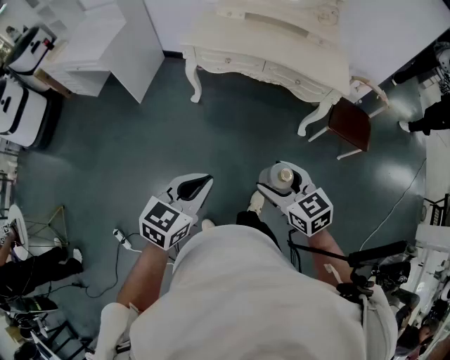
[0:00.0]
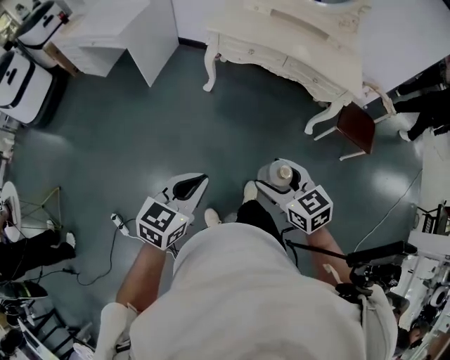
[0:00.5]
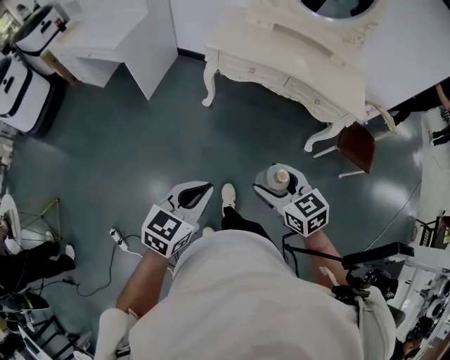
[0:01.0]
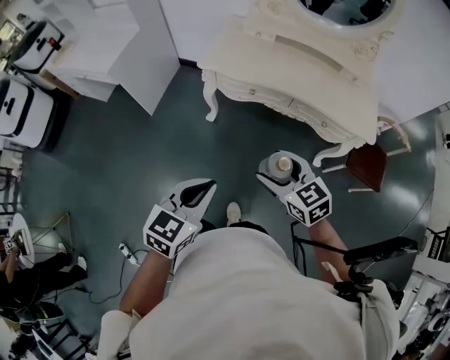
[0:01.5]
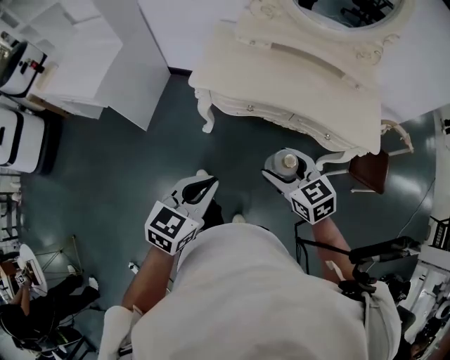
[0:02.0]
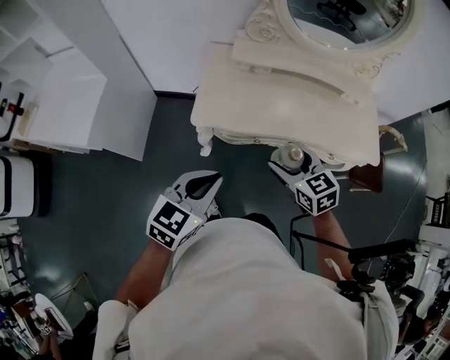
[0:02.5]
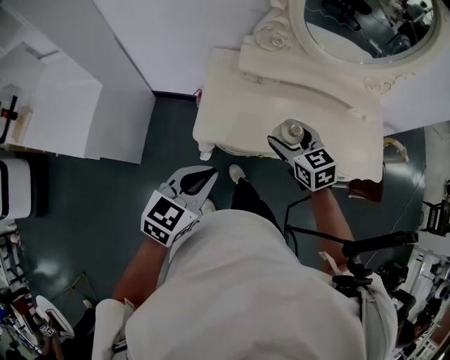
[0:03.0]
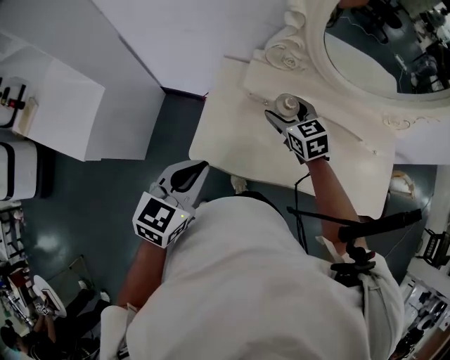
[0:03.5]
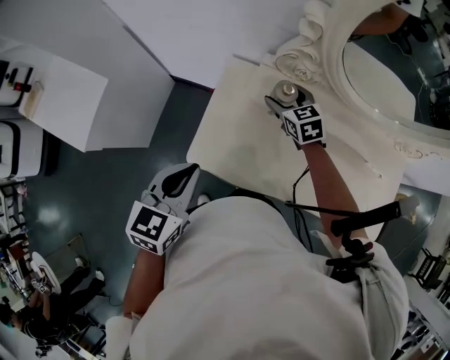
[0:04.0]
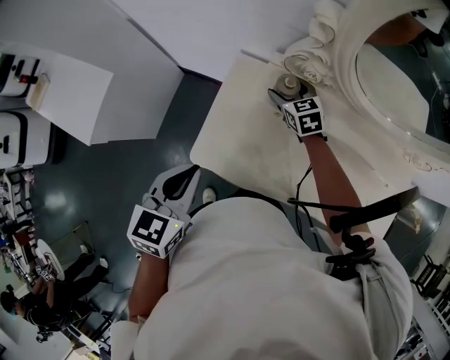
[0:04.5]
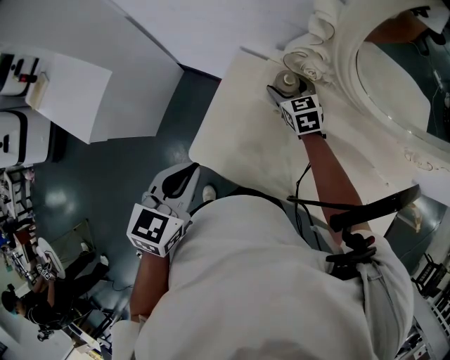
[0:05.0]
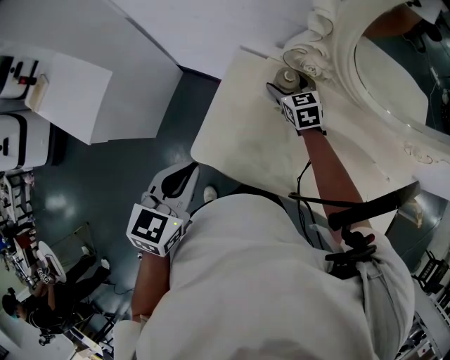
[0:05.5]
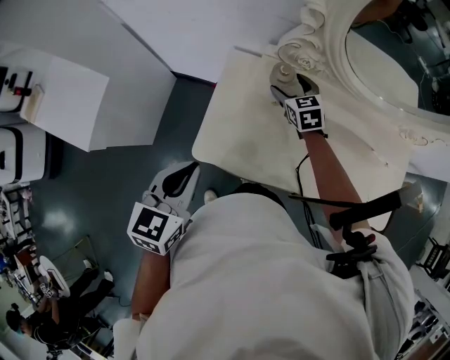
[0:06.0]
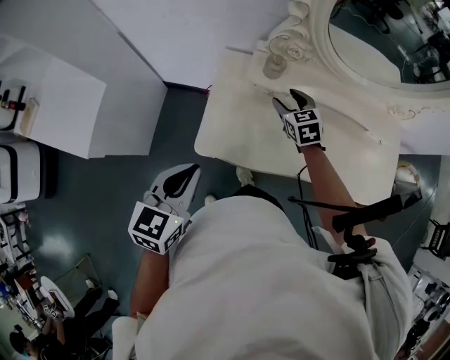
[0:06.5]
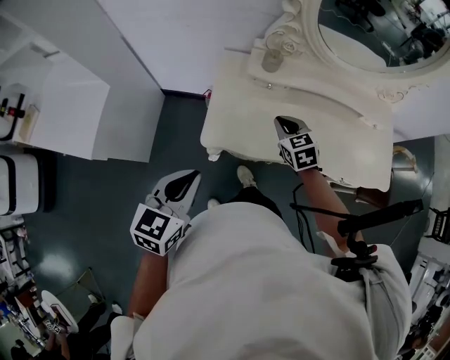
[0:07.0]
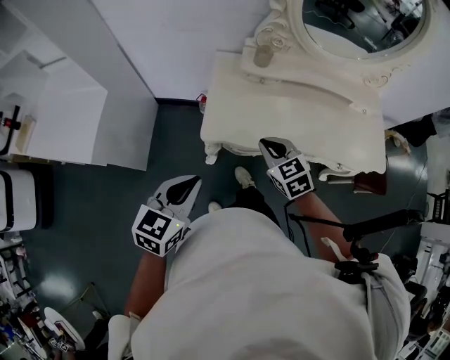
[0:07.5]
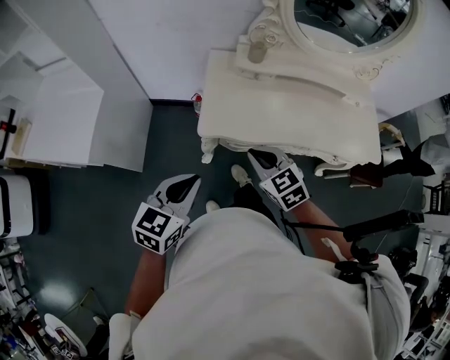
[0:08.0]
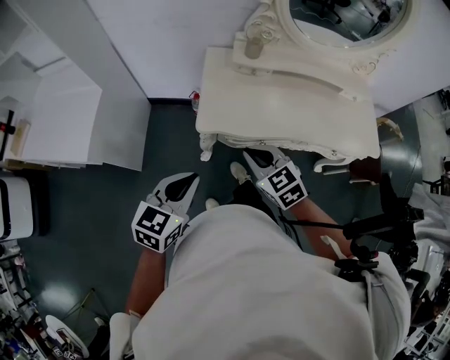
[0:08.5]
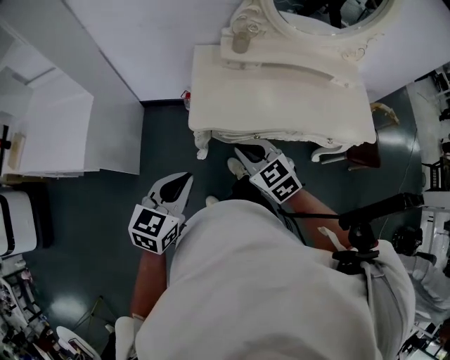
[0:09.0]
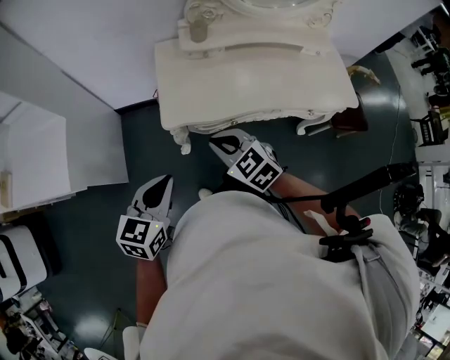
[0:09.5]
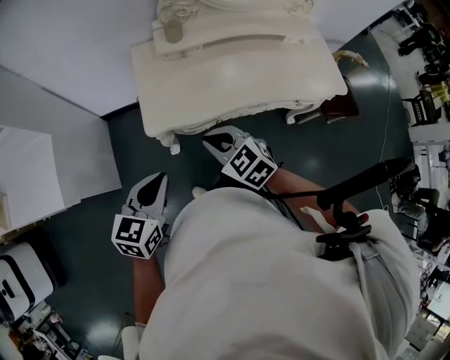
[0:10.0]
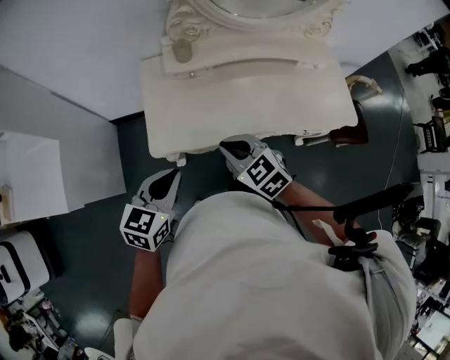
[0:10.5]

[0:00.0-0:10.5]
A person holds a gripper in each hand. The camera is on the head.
0:00.0 to 0:02.0: Both grippers move forward, about 40 cm.
0:02.0 to 0:04.0: The two grippers travel together, forward, some 60 cm.
0:04.0 to 0:06.5: The left gripper travels backward and to the left by about 10 cm. The right gripper heads backward, covering approximately 10 cm.
0:06.5 to 0:08.5: The left gripper heads backward, covering roughly 20 cm. Meanwhile the right gripper shifts approximately 35 cm backward, and closes up.
0:08.5 to 0:10.5: The left gripper goes approximately 15 cm to the right and forward. The right gripper goes roughly 10 cm to the right.

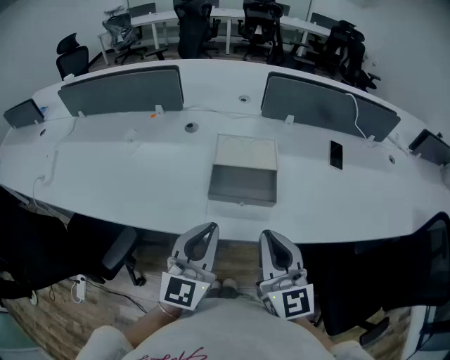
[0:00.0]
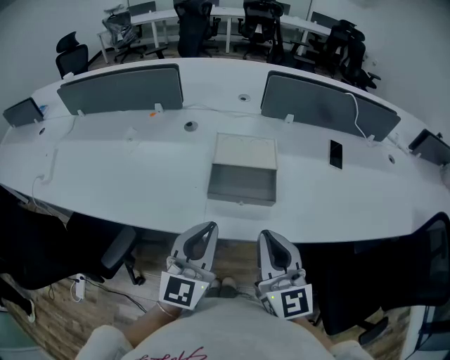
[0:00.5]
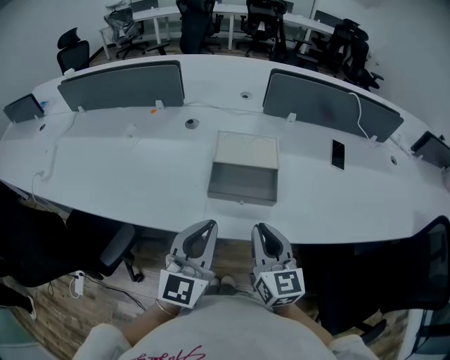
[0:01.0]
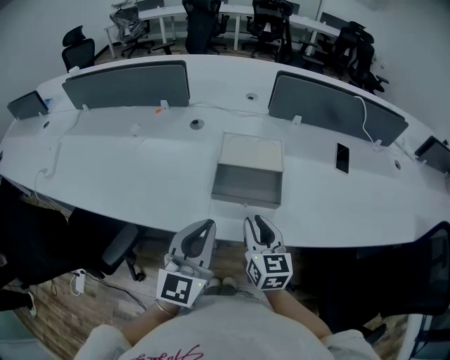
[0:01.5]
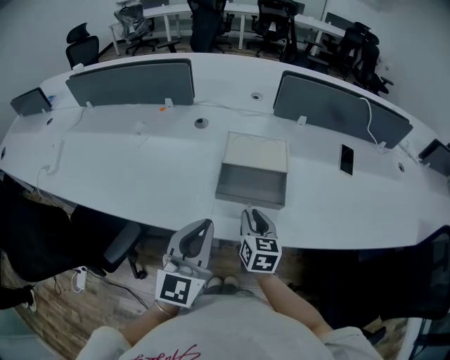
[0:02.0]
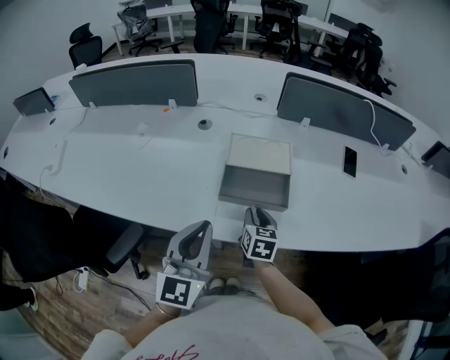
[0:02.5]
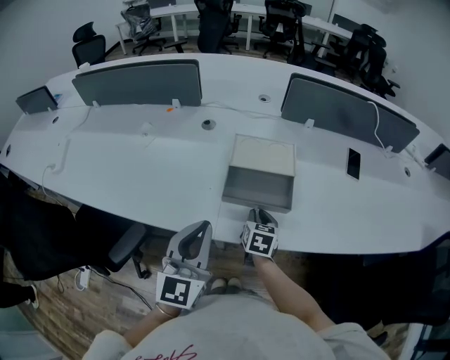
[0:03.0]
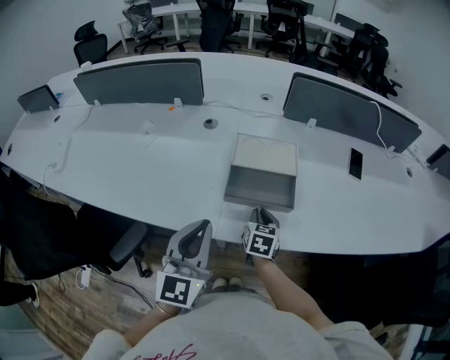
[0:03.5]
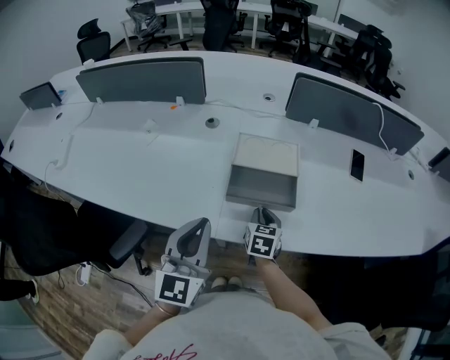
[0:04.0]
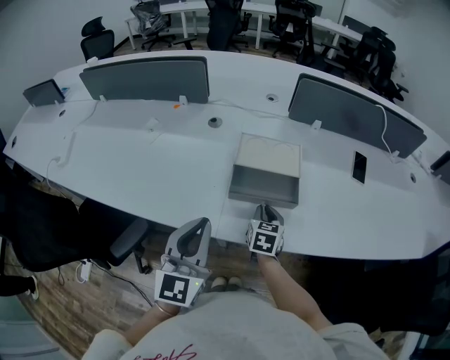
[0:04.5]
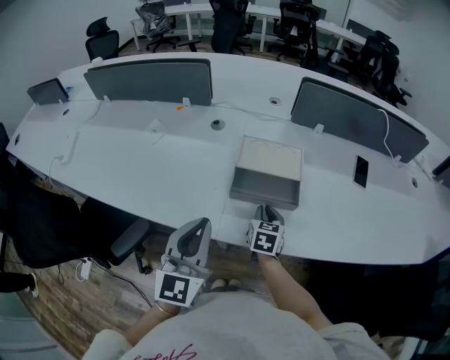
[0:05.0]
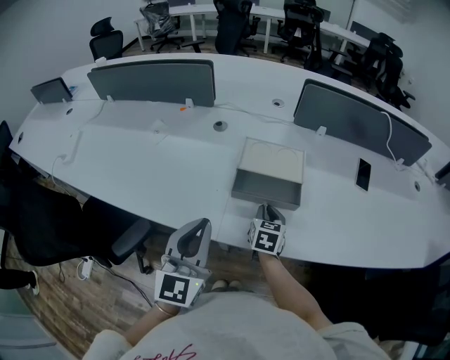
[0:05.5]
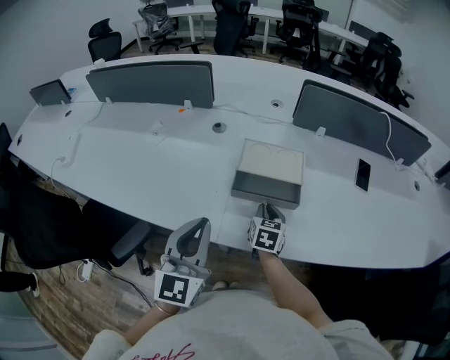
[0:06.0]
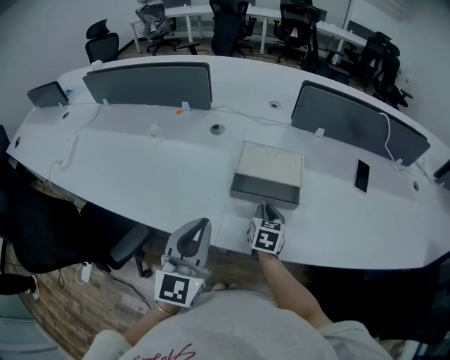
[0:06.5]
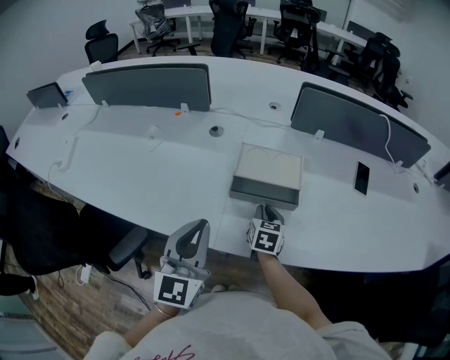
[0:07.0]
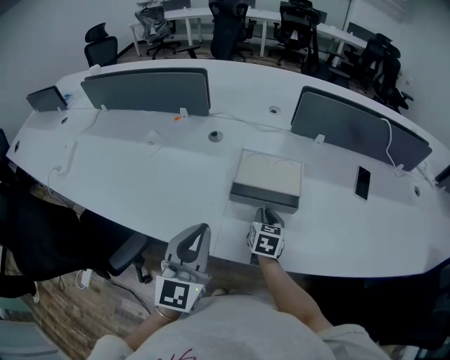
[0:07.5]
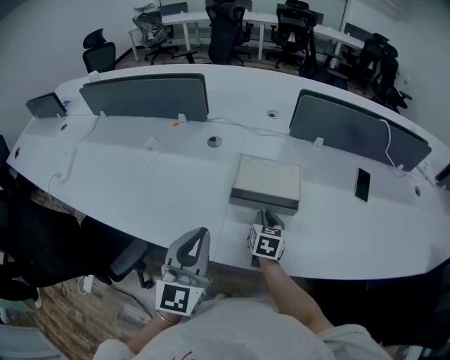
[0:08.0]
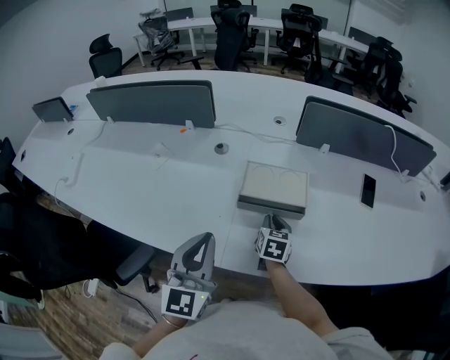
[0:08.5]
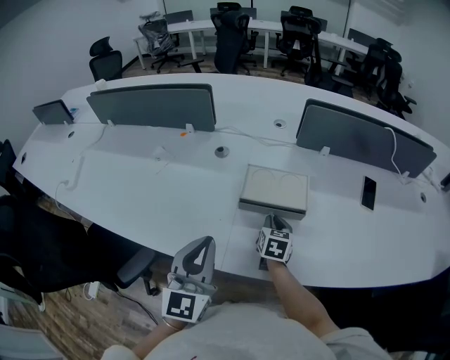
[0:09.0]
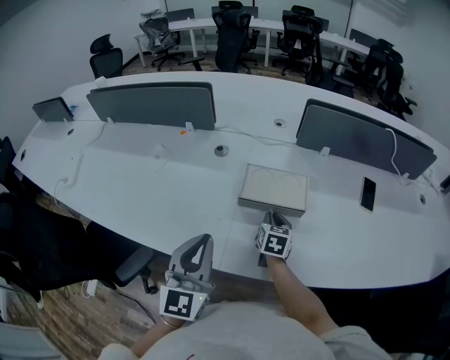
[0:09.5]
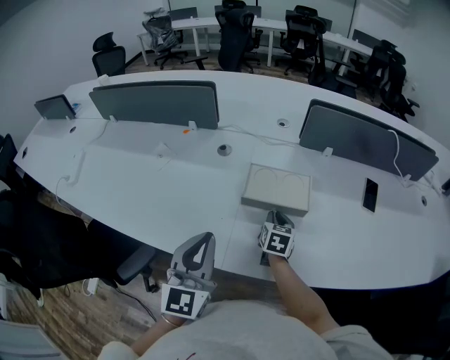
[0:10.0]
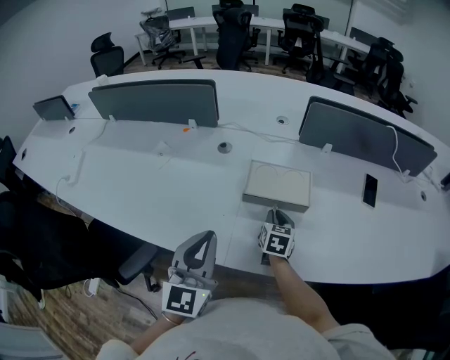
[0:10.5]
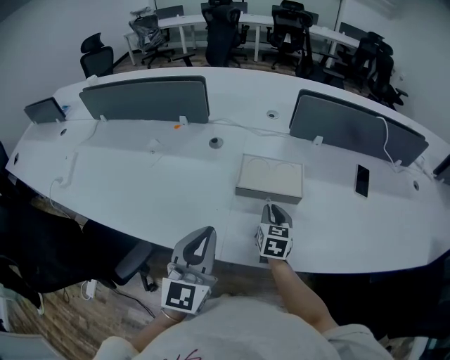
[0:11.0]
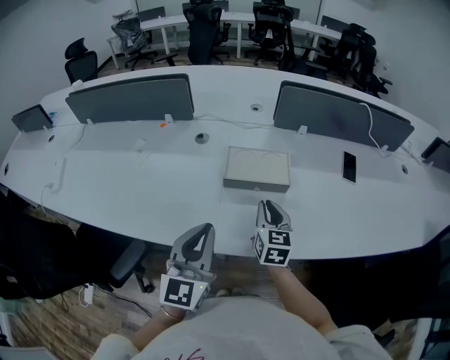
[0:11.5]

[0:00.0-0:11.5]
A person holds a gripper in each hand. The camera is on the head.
0:00.0 to 0:02.0: The right gripper goes about 20 cm downward and forward, and turns by roughly 30 degrees.
0:02.0 to 0:04.0: The right gripper shifts about 5 cm downward.
0:04.0 to 0:06.0: The grippers move only a little.
0:06.0 to 0:07.5: The grippers make only small movements.
0:07.5 to 0:09.5: The grippers move only a little.
0:09.5 to 0:11.5: The right gripper is displaced upward and backward by some 10 cm.

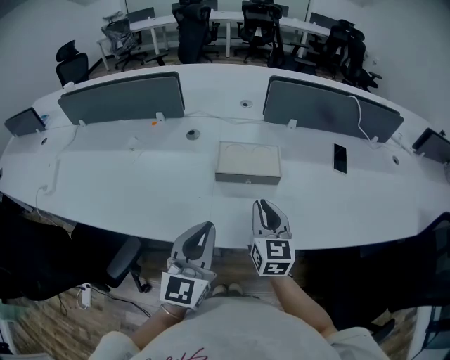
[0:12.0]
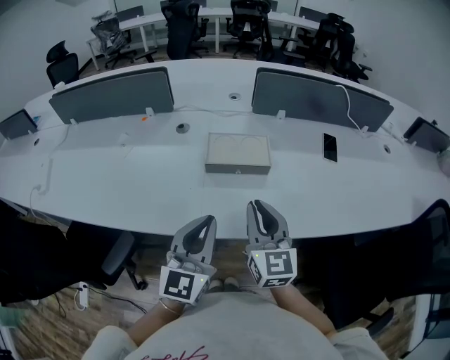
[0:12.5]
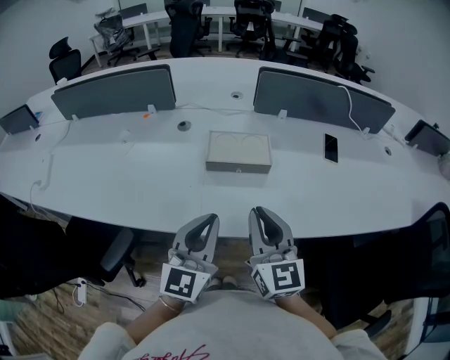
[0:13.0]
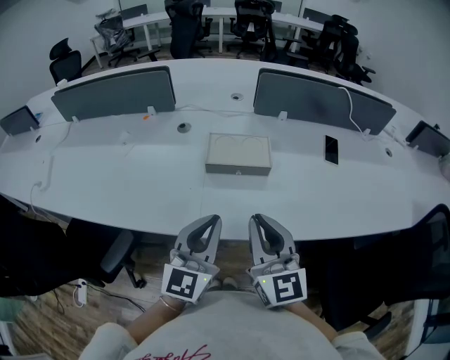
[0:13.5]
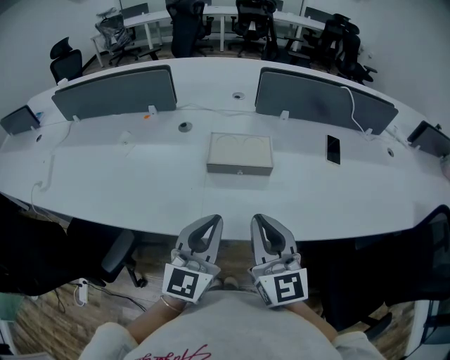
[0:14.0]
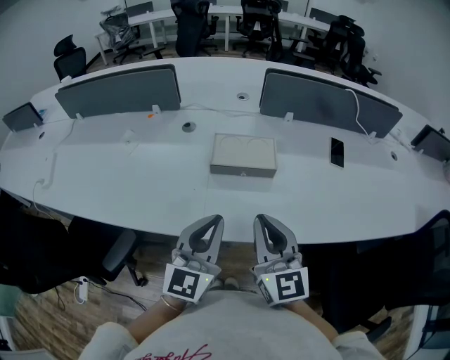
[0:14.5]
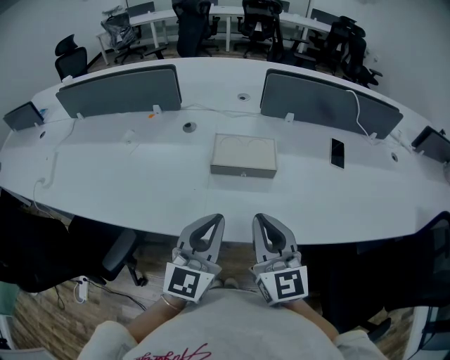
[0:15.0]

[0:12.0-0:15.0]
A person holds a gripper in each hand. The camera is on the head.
0:12.0 to 0:13.5: The right gripper heads backward and upward, covering about 15 cm.
0:13.5 to 0:15.0: The grippers move only a little.

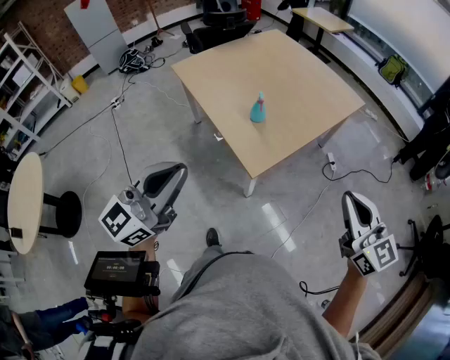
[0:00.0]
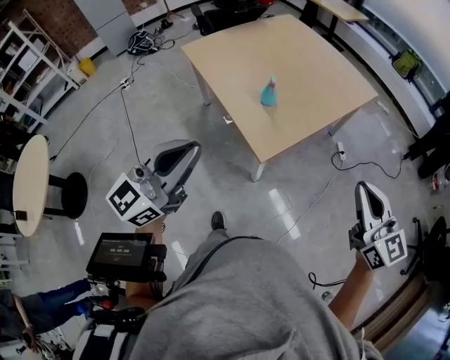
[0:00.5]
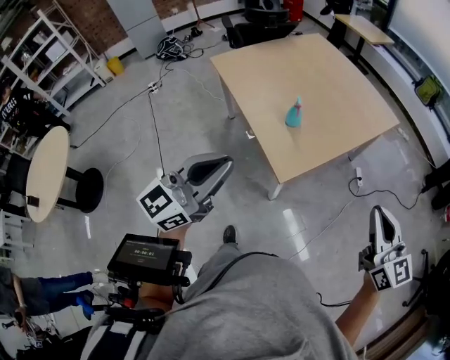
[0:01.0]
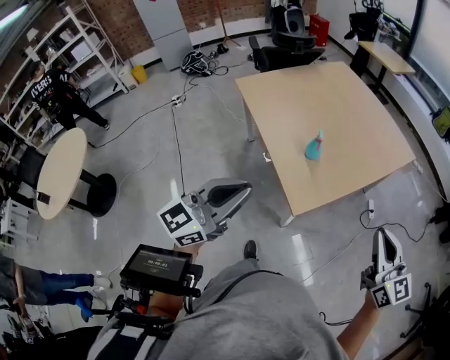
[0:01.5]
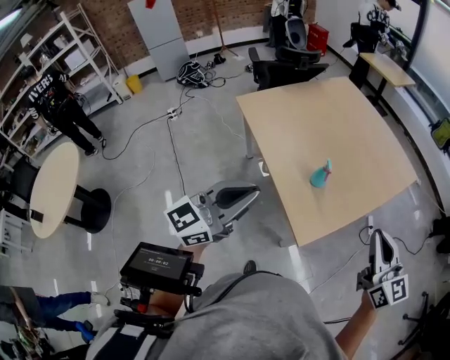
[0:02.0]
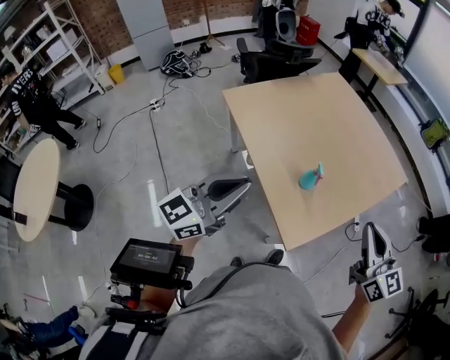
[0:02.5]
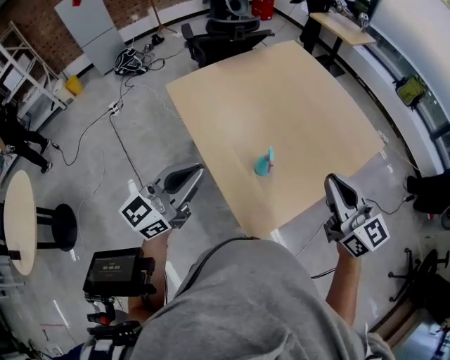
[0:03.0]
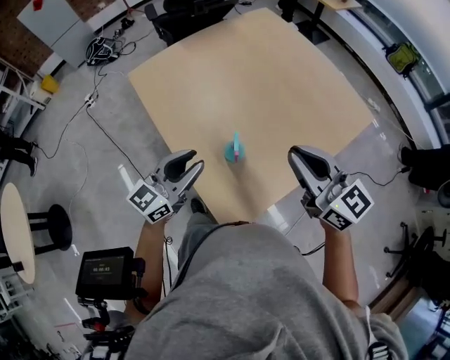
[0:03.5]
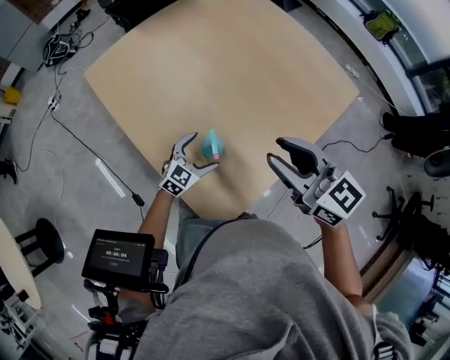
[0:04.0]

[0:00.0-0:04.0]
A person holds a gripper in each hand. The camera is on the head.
0:00.0 to 0:02.0: The left gripper heads forward, covering roughly 15 cm. The right gripper moves forward and to the left, approximately 20 cm.
0:02.0 to 0:04.0: The left gripper travels downward, forward and to the right by about 60 cm, tips its fingers downward by about 40 degrees, and opens up; the right gripper moves forward, about 30 cm, and swivels some 20 degrees.
